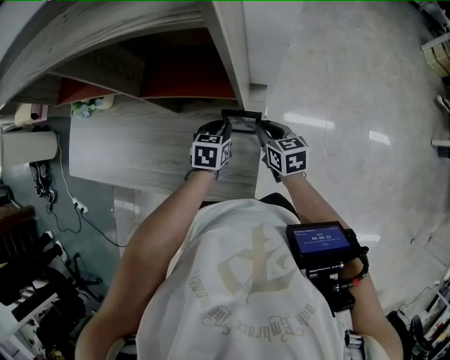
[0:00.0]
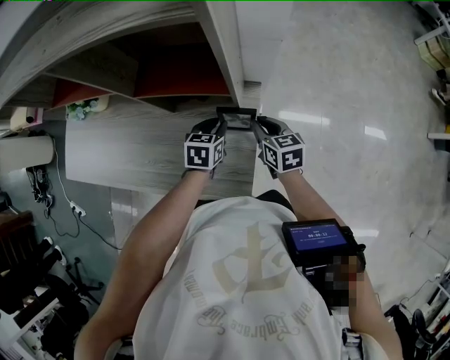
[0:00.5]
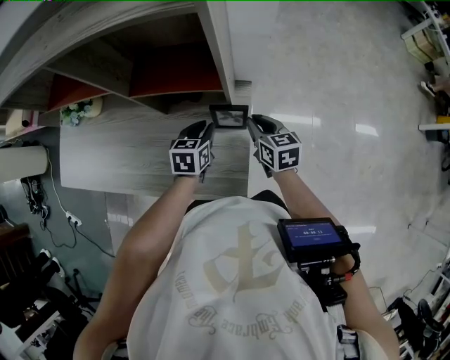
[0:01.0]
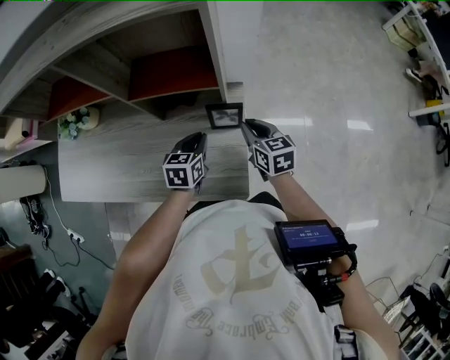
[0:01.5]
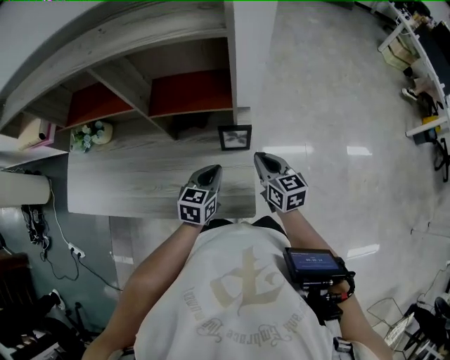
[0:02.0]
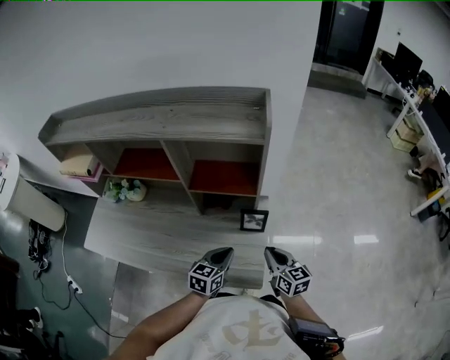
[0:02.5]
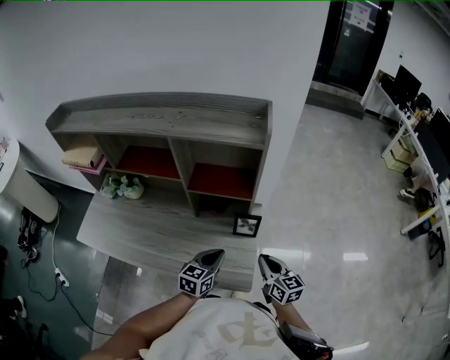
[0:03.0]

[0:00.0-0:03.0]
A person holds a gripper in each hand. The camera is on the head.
0:00.0 to 0:01.5: The left gripper heads backward, covering roughly 5 cm, while the right gripper moves upward, some 5 cm.
0:01.5 to 0:03.0: Both grippers travel together backward and upward, roughly 15 cm.

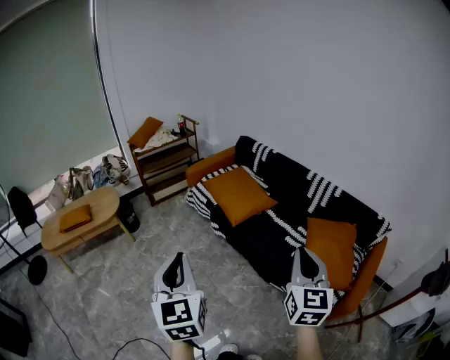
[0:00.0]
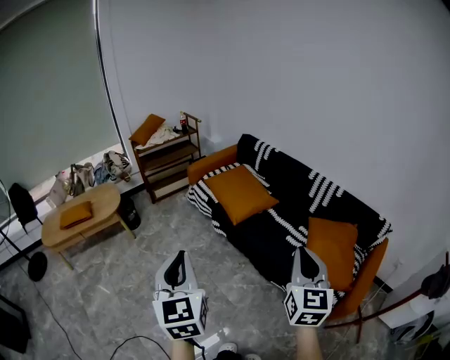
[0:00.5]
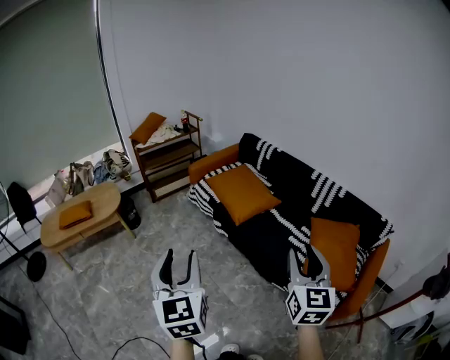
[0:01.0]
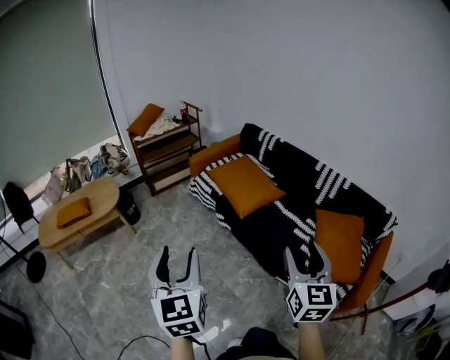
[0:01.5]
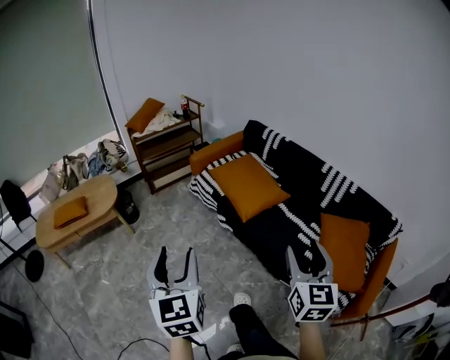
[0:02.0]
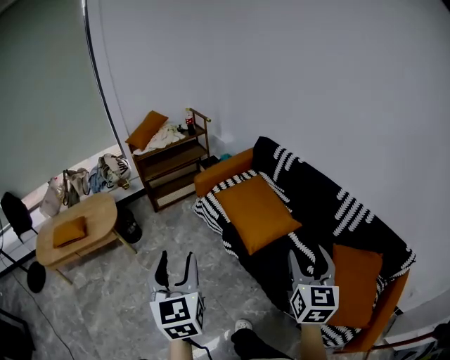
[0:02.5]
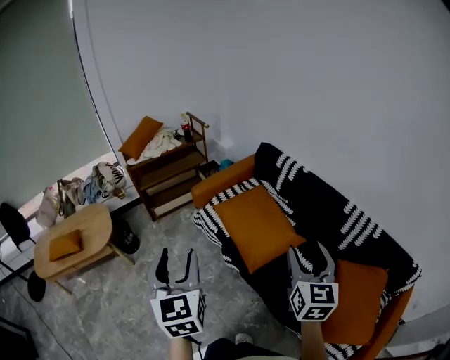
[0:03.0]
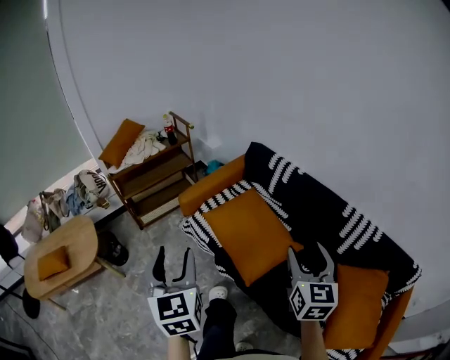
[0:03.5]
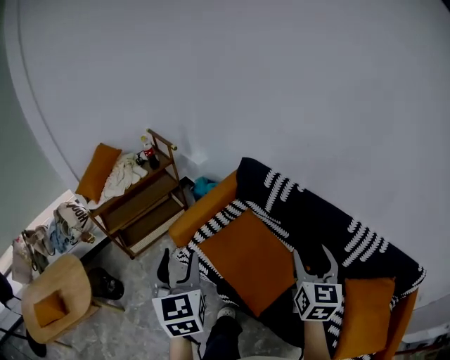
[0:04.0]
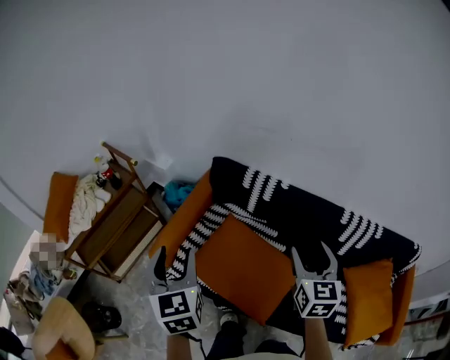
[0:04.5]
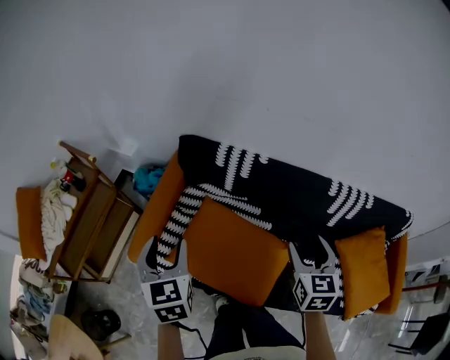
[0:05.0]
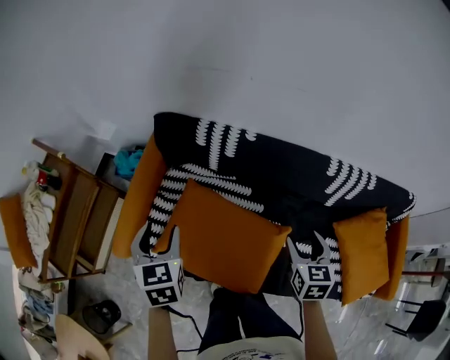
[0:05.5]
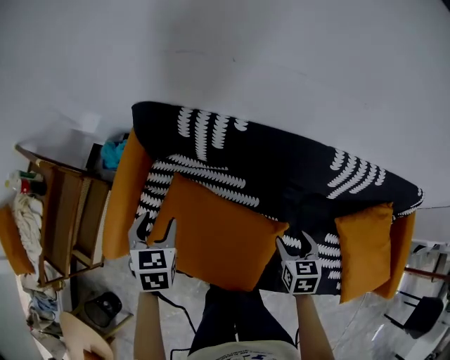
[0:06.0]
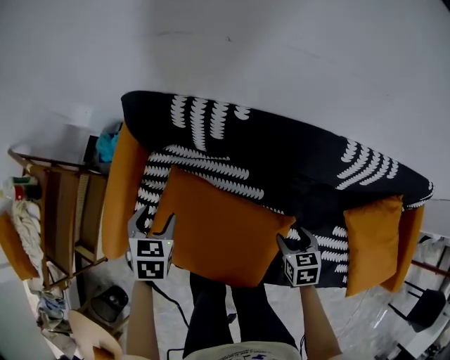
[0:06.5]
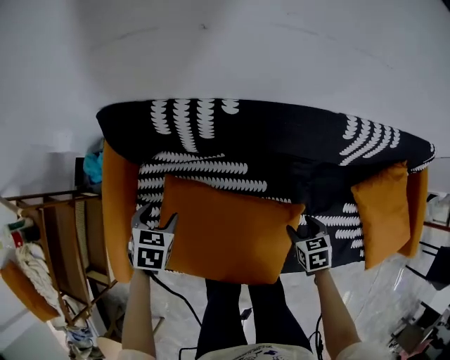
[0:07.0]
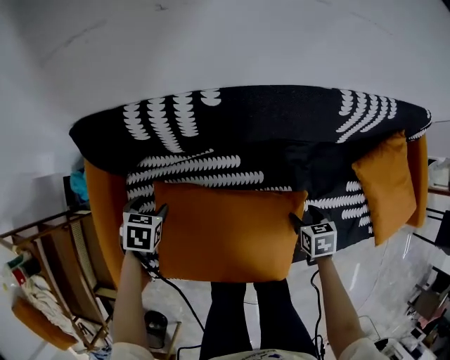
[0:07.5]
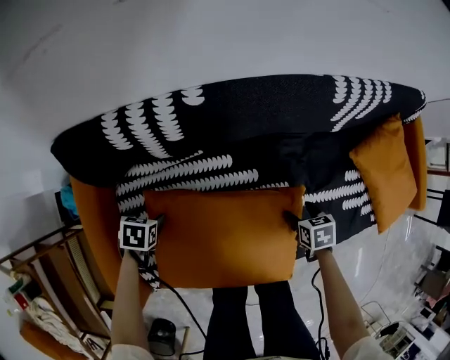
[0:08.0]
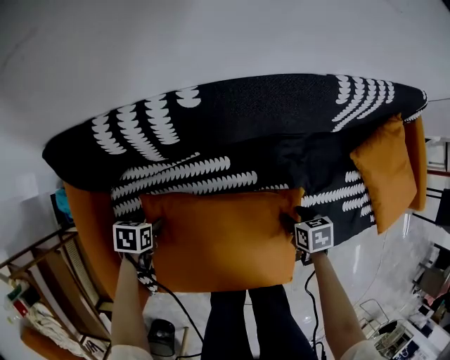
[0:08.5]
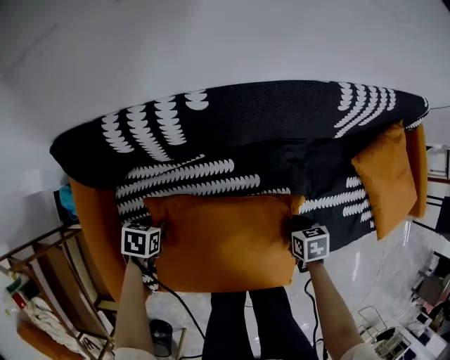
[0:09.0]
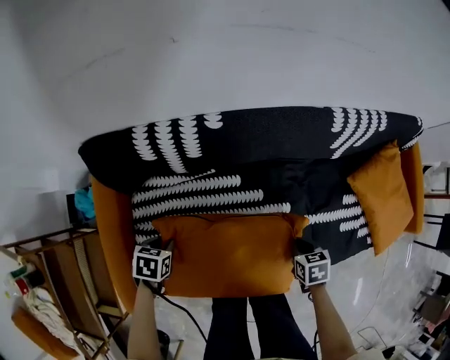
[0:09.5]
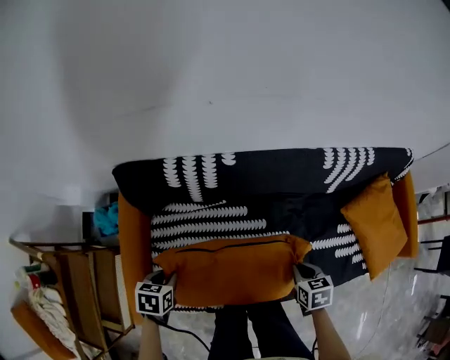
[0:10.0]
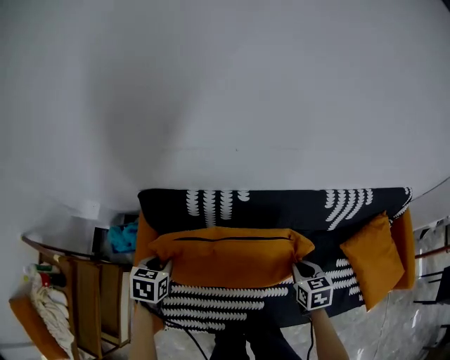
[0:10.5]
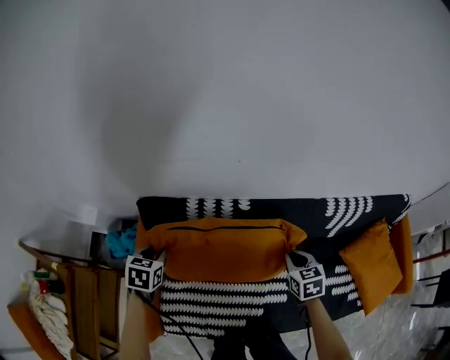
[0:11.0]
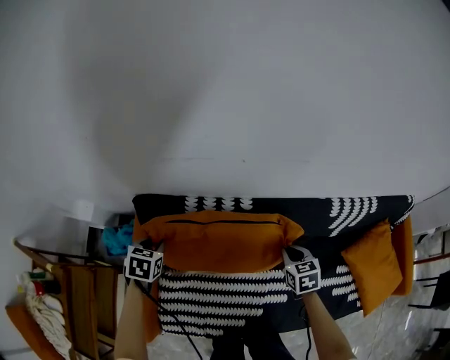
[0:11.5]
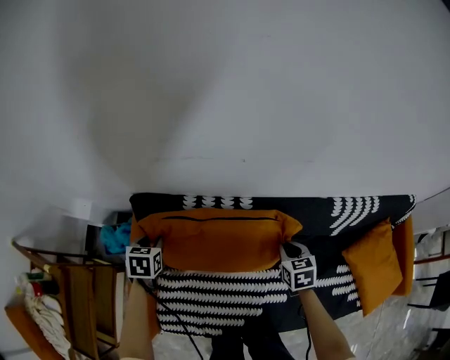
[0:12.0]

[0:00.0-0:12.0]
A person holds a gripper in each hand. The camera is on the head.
0:00.0 to 0:02.0: Both grippers move forward and to the left, approximately 15 cm. The right gripper opens its fingers, while the left gripper opens its fingers.
0:02.0 to 0:04.0: The pair of grippers is taken forward, approximately 60 cm.
0:04.0 to 0:06.0: The right gripper goes some 40 cm downward, forward and to the right, and angles its fingers downward, by roughly 40 degrees. Meanwhile the left gripper goes roughly 50 cm forward and downward, and points its fingers some 40 degrees further downward.
0:06.0 to 0:08.0: The two grippers go about 25 cm downward. The left gripper rotates some 50 degrees. The right gripper swivels some 30 degrees.
0:08.0 to 0:10.0: The two grippers go some 15 cm upward. The left gripper closes up, while the right gripper closes.
0:10.0 to 0:12.0: The left gripper travels forward and to the left by about 25 cm. The right gripper goes roughly 25 cm forward.

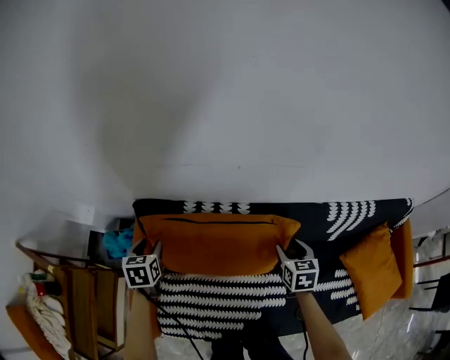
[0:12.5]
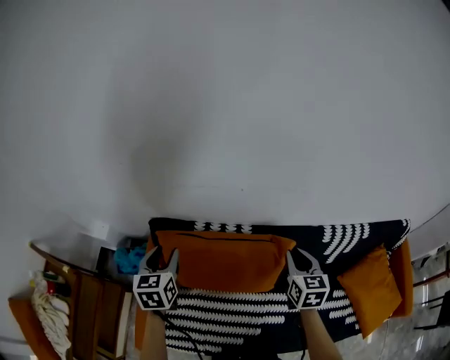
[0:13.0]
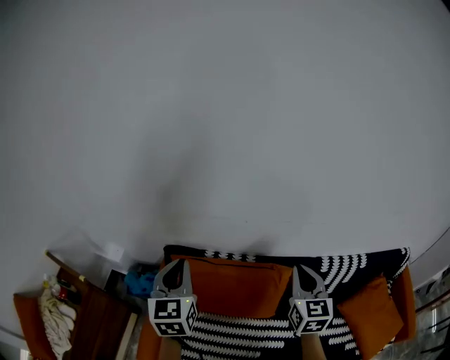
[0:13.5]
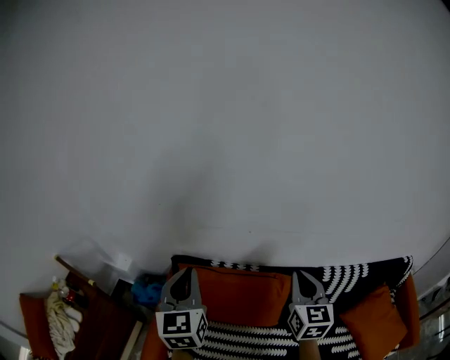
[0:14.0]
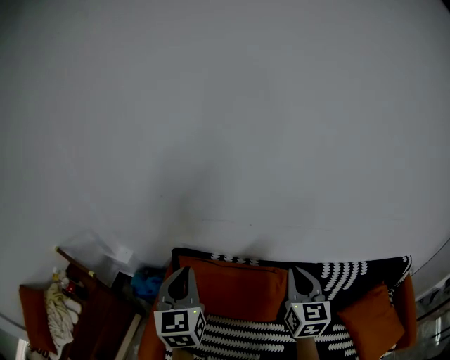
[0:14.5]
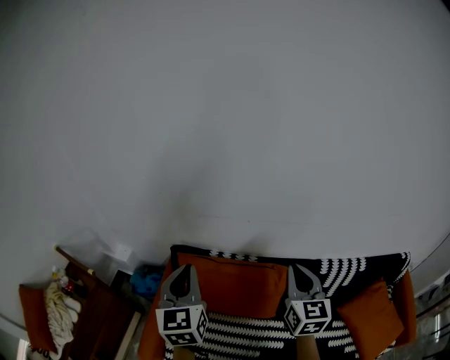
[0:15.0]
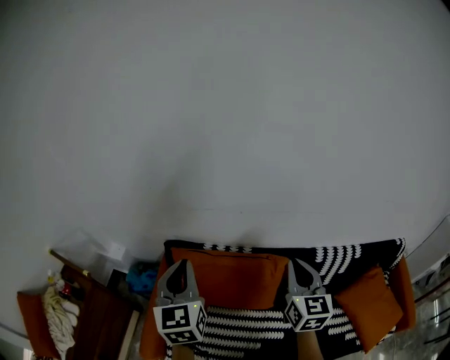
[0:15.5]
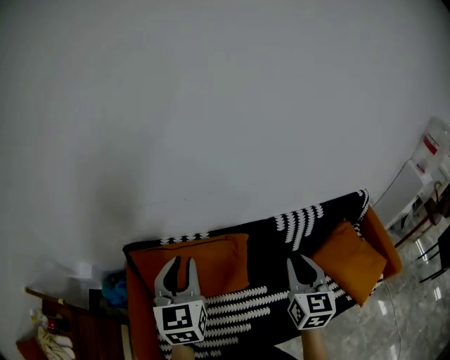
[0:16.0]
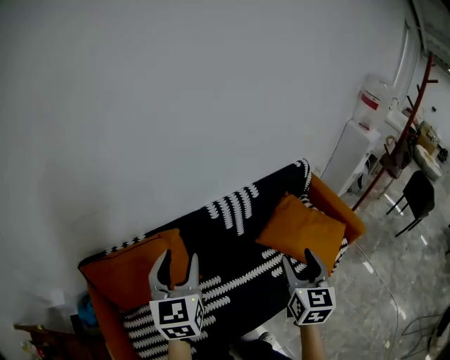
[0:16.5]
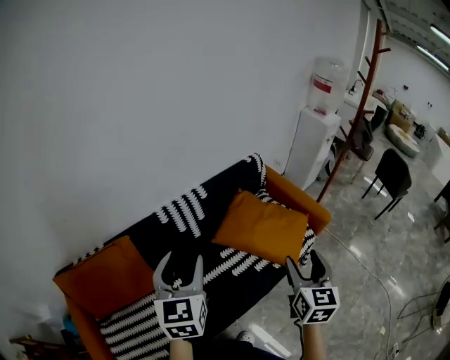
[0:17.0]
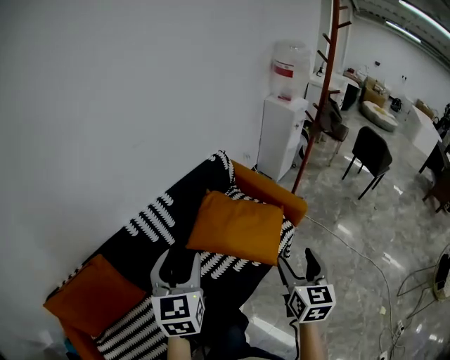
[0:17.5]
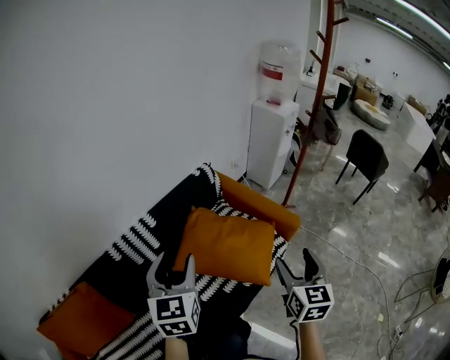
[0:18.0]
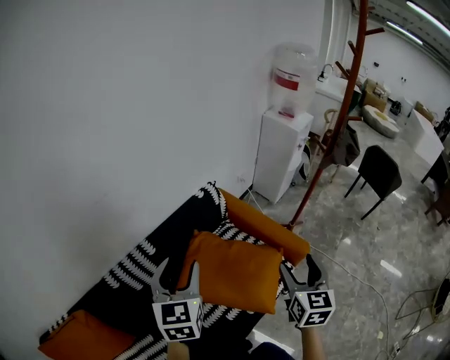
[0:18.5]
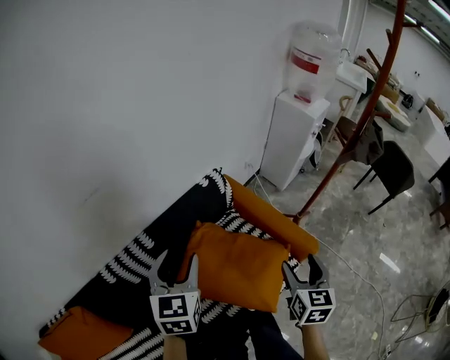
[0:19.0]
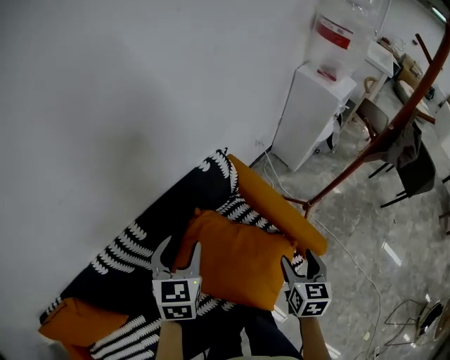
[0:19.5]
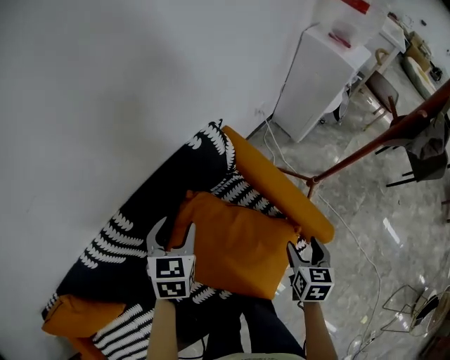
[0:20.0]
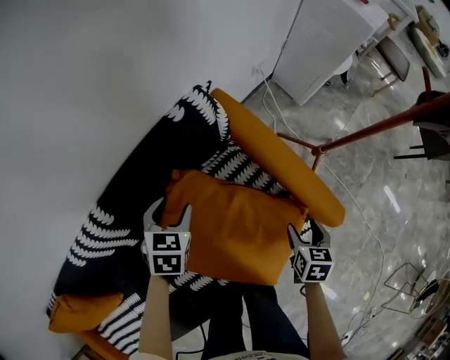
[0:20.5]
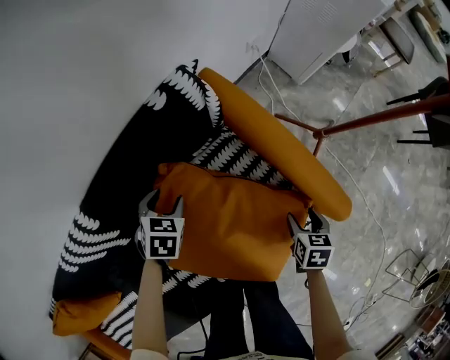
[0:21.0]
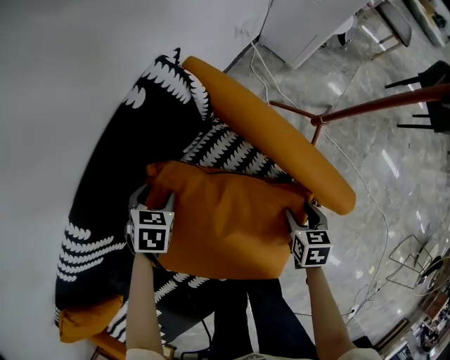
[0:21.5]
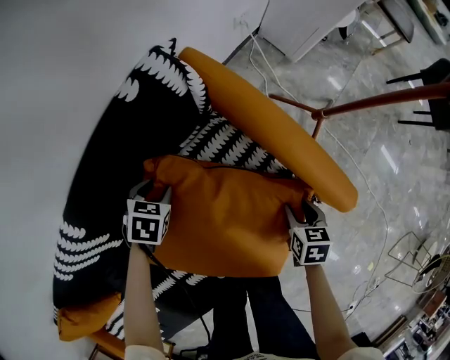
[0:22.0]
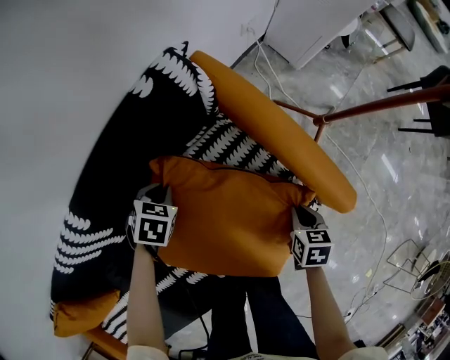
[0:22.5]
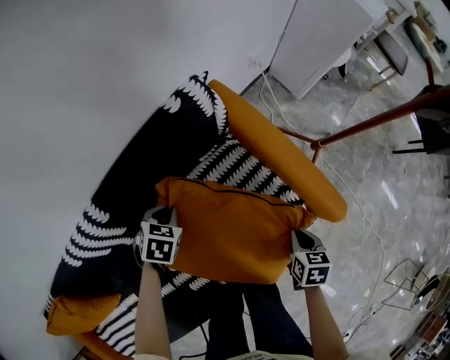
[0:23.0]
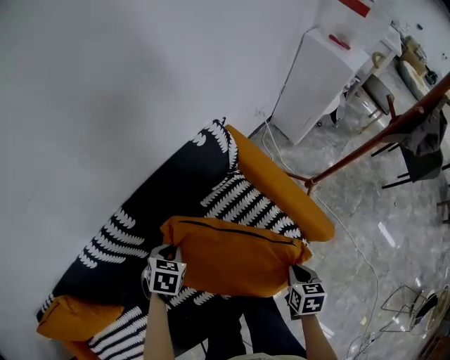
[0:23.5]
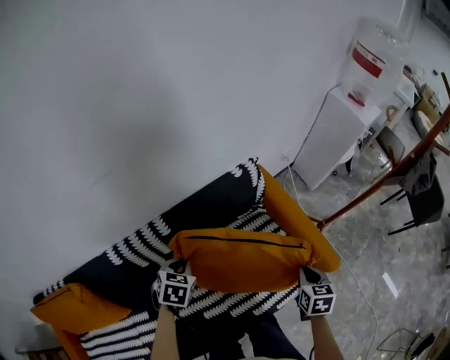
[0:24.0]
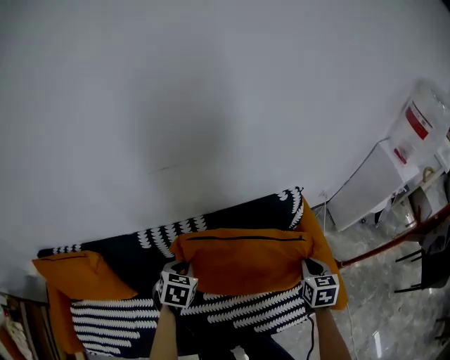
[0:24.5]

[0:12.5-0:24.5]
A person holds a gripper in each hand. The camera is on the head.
0:12.5 to 0:14.5: The two grippers go approximately 35 cm upward. The right gripper tilts its fingers some 40 degrees upward, and closes up; the left gripper points its fingers roughly 40 degrees further upward, and closes its fingers.
0:14.5 to 0:16.5: The right gripper moves approximately 40 cm, swivels approximately 40 degrees, and opens its fingers, while the left gripper shifts by about 35 cm, changes its angle by approximately 40 degrees, and opens up.
0:16.5 to 0:18.5: The pair of grippers is taken to the right and forward, approximately 50 cm. The left gripper turns by about 20 degrees.
0:18.5 to 0:20.5: The two grippers go roughly 40 cm downward and forward. The left gripper angles its fingers downward, by some 40 degrees. The right gripper points its fingers roughly 40 degrees further downward.
0:20.5 to 0:22.5: The left gripper is displaced downward by some 15 cm, swivels roughly 20 degrees, and closes its fingers. The right gripper is displaced downward by roughly 10 cm, and closes.
0:22.5 to 0:24.5: Both grippers move upward, approximately 30 cm. The right gripper swivels roughly 40 degrees. The left gripper changes its angle by some 40 degrees.
